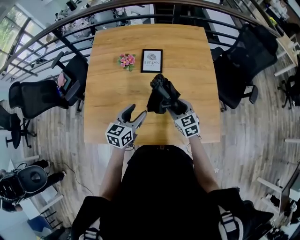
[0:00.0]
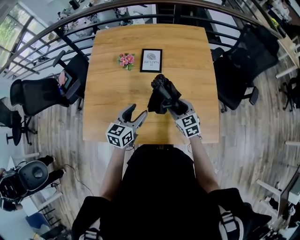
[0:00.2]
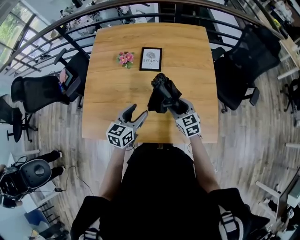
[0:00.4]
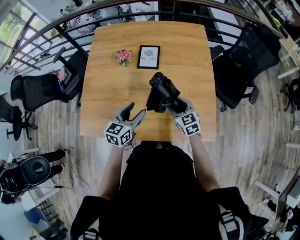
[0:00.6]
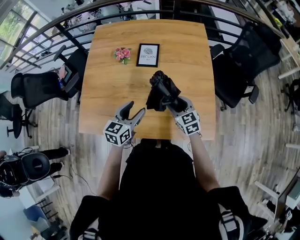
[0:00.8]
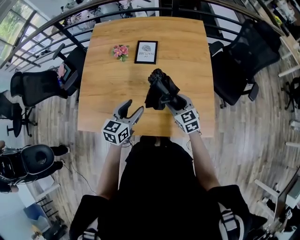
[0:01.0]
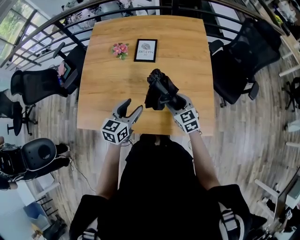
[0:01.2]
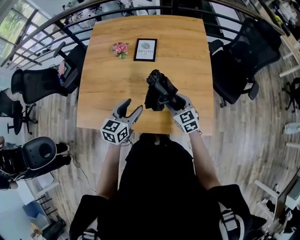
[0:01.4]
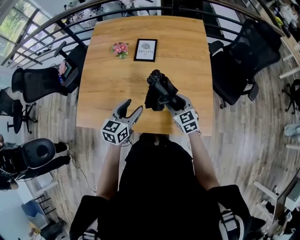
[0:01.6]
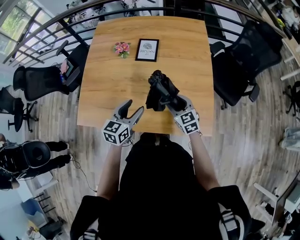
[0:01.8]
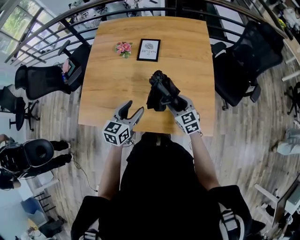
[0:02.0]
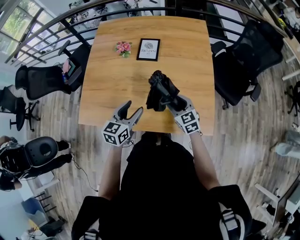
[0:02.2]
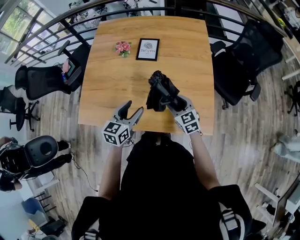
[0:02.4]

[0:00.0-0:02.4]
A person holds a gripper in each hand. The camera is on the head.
0:00.0 to 0:01.2: The right gripper changes place by roughly 5 cm, while the left gripper changes place by some 5 cm.
0:01.2 to 0:02.4: There are only small adjustments of the grippers.

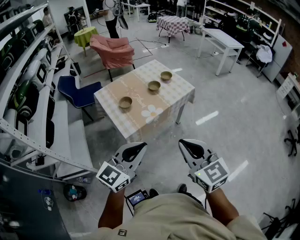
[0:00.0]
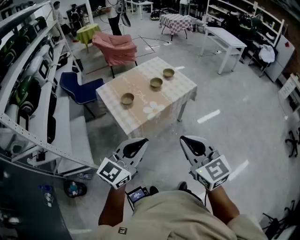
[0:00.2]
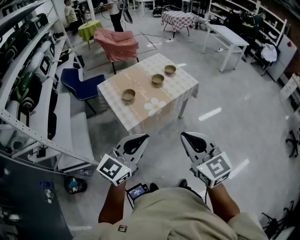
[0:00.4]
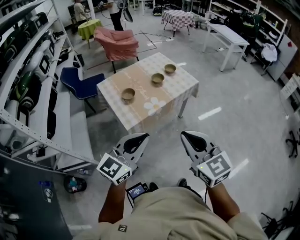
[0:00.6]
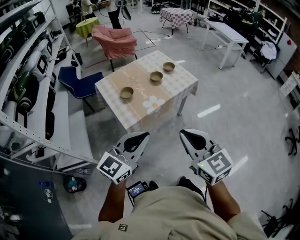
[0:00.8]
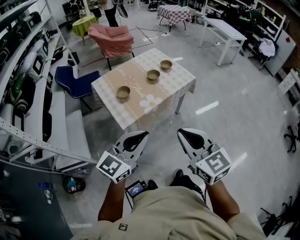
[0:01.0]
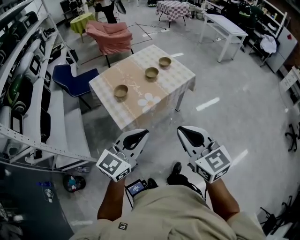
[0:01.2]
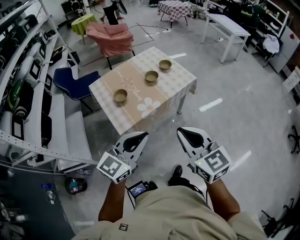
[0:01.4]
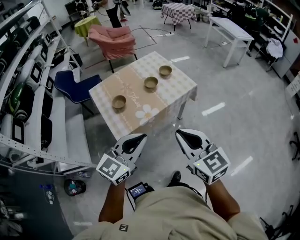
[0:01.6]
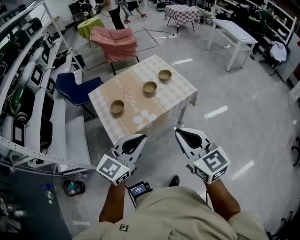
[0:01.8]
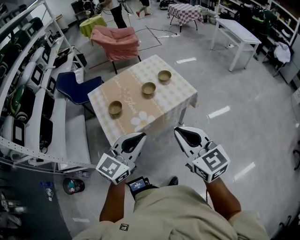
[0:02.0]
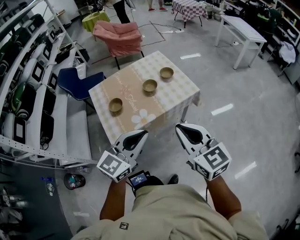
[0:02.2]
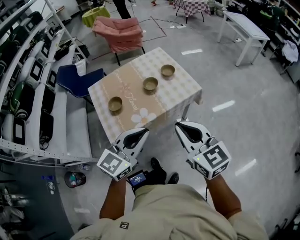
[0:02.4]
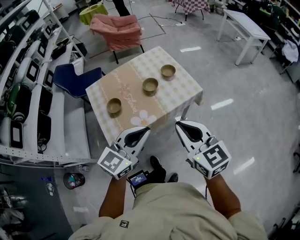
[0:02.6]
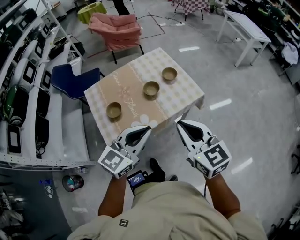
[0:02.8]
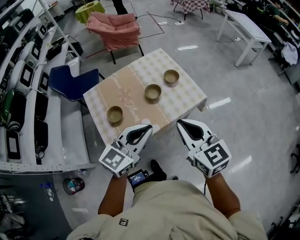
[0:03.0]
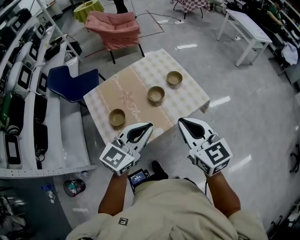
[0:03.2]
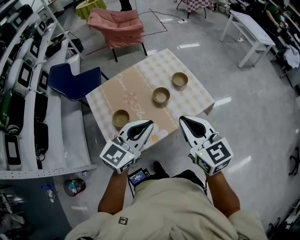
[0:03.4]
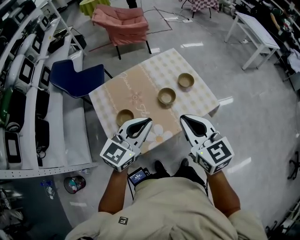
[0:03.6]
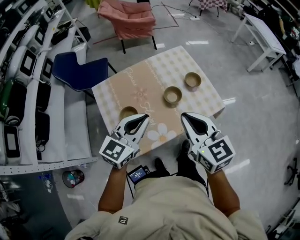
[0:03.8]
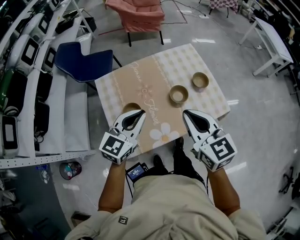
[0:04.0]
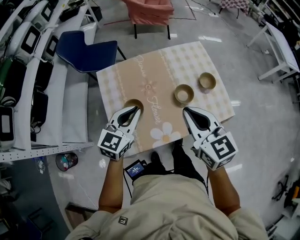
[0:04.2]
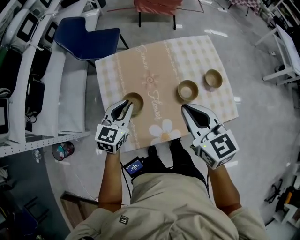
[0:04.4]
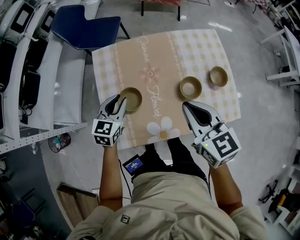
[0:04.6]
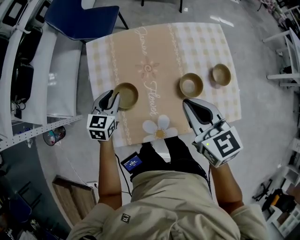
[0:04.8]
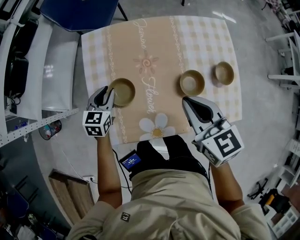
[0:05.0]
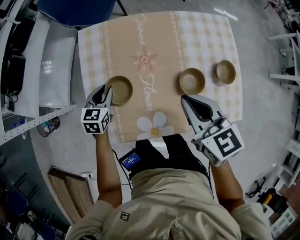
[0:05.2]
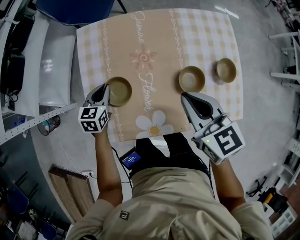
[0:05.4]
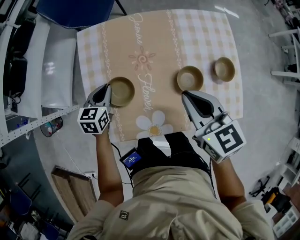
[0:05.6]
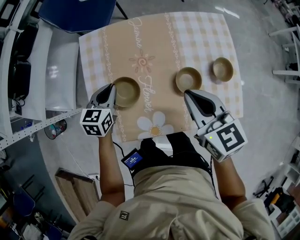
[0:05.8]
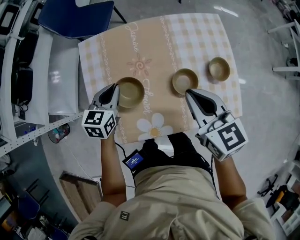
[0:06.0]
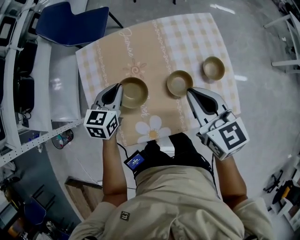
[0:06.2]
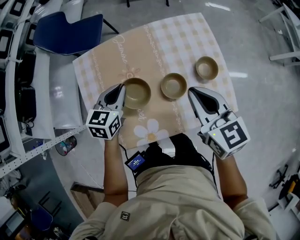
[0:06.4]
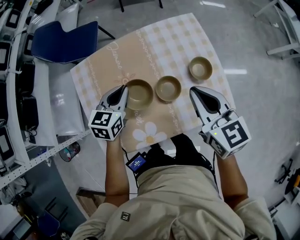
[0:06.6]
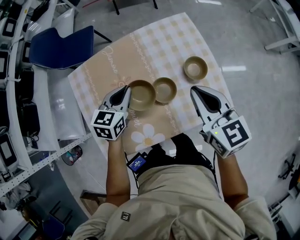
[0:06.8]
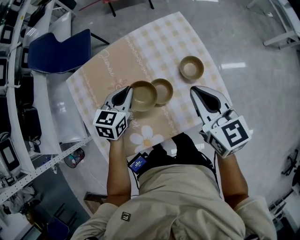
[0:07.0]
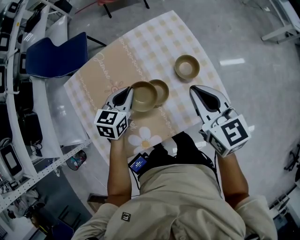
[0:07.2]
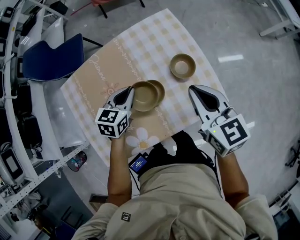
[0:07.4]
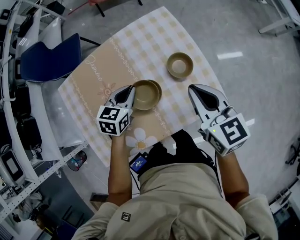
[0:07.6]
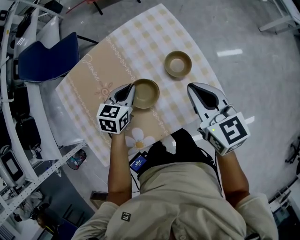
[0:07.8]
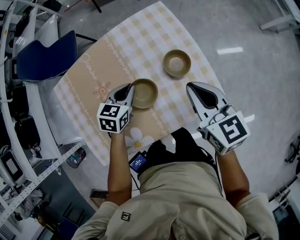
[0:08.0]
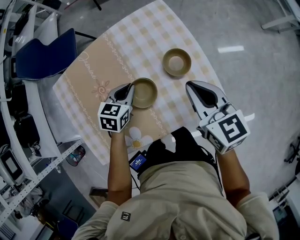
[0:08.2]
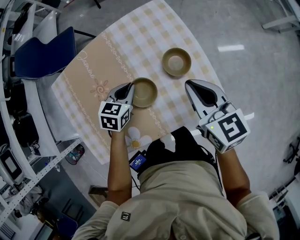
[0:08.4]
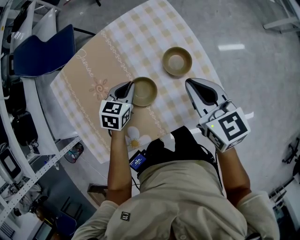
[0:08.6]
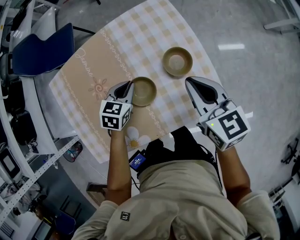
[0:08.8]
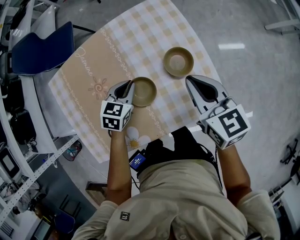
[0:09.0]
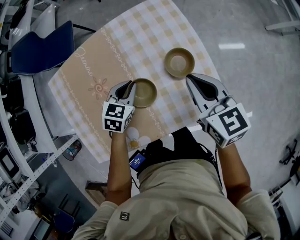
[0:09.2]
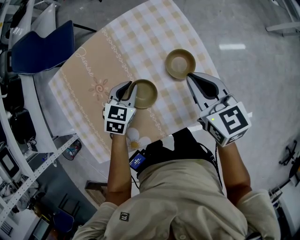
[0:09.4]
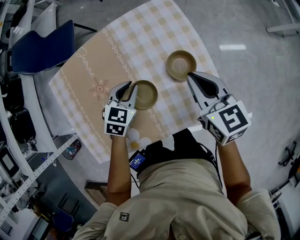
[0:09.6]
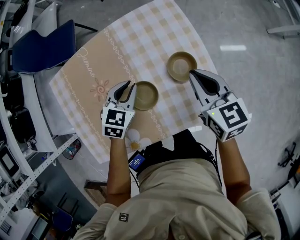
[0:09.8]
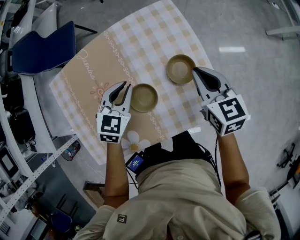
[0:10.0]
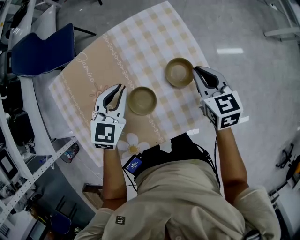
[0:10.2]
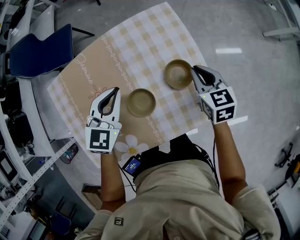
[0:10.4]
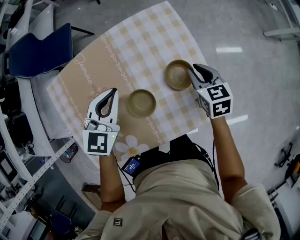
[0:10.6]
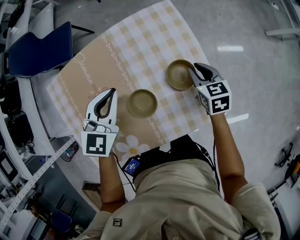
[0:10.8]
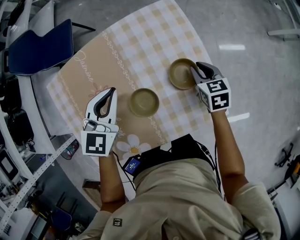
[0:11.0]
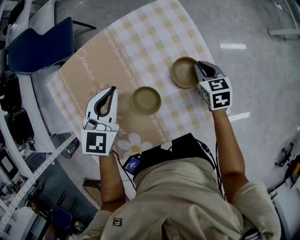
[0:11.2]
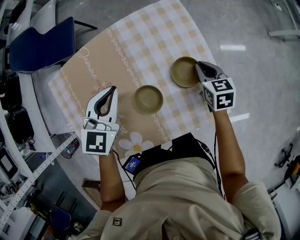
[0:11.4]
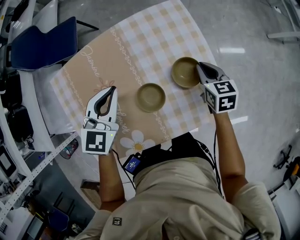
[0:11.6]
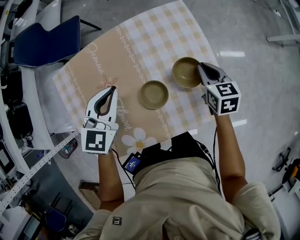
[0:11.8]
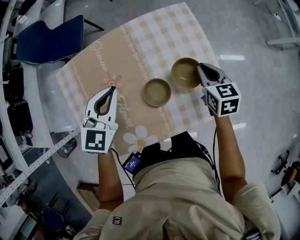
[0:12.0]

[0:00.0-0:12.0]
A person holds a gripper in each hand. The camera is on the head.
0:00.0 to 0:01.6: The grippers both shift forward and to the right by roughly 15 cm.
0:01.6 to 0:03.0: Both grippers move forward, about 25 cm.
0:03.0 to 0:04.4: The right gripper ends up approximately 25 cm from where it was. Meanwhile the left gripper ends up about 35 cm from where it was, and changes its angle by roughly 40 degrees.
0:04.4 to 0:06.0: The right gripper shifts some 15 cm downward, to the right and forward. Meanwhile the left gripper shifts approximately 10 cm downward and forward.
0:06.0 to 0:07.6: Both grippers travel together to the right, approximately 20 cm. The left gripper turns by approximately 20 degrees.
0:07.6 to 0:09.0: The grippers both shift downward by about 5 cm.
0:09.0 to 0:10.4: The right gripper goes about 10 cm downward and forward; the left gripper travels upward by some 10 cm, and turns by approximately 20 degrees.
0:10.4 to 0:12.0: The right gripper goes downward and returns, approximately 10 cm each way, while the left gripper shifts some 10 cm to the left.

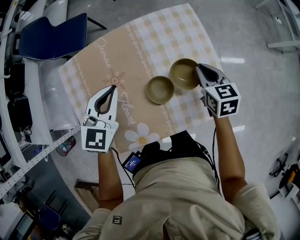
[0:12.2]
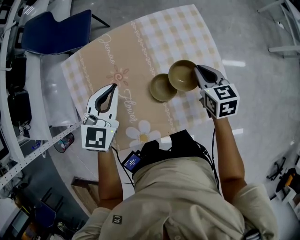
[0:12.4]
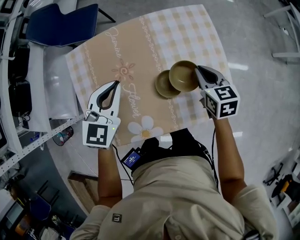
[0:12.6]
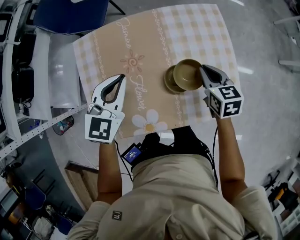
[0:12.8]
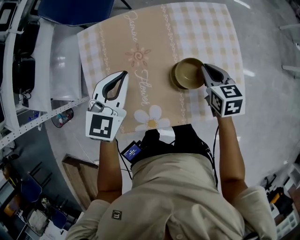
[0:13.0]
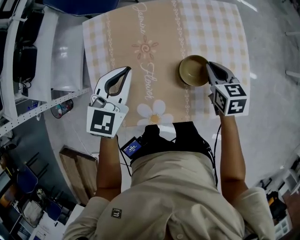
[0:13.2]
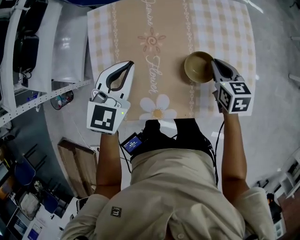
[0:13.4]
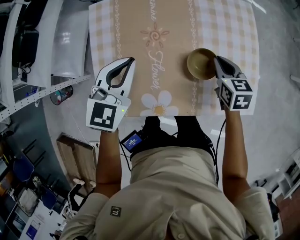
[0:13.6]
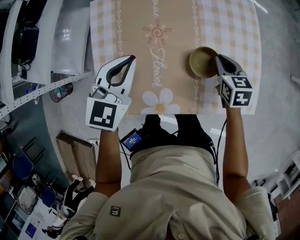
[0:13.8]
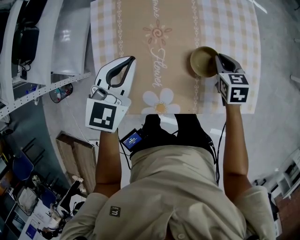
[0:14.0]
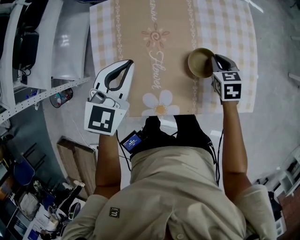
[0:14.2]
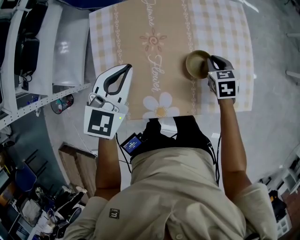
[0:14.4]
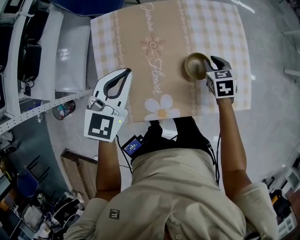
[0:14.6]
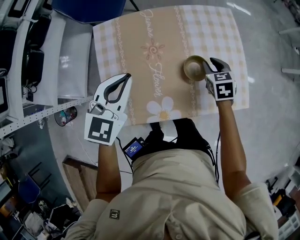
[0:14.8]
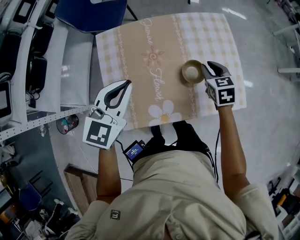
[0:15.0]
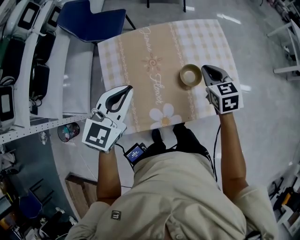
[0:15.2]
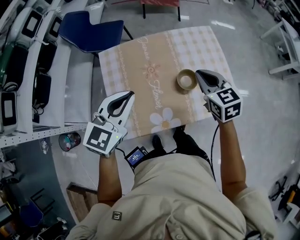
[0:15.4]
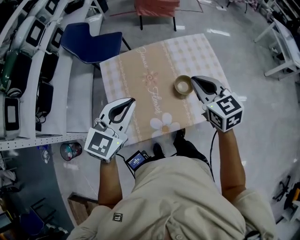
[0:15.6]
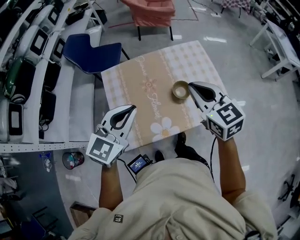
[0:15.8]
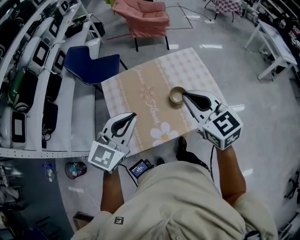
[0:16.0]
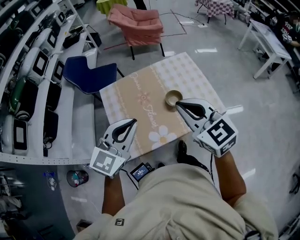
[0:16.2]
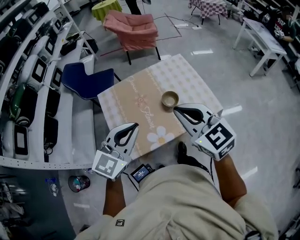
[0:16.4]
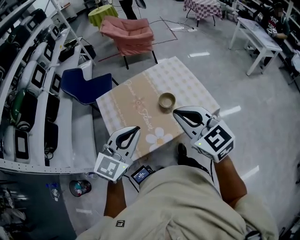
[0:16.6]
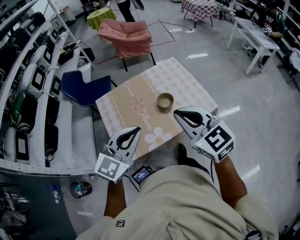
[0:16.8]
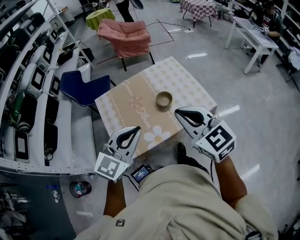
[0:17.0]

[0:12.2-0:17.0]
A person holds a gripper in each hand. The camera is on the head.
0:12.2 to 0:13.8: The left gripper shifts roughly 15 cm to the left and backward. Meanwhile the right gripper travels to the left and downward by about 15 cm.
0:13.8 to 0:15.4: The left gripper is displaced upward and backward by some 20 cm; the right gripper heads upward, covering roughly 20 cm.
0:15.4 to 0:17.0: The left gripper travels backward, to the right and upward by approximately 20 cm, and changes its angle by about 20 degrees. Meanwhile the right gripper shifts some 30 cm backward and upward.

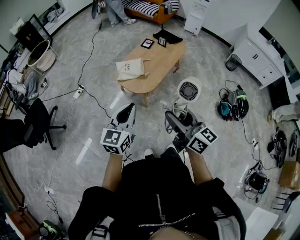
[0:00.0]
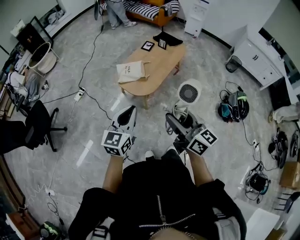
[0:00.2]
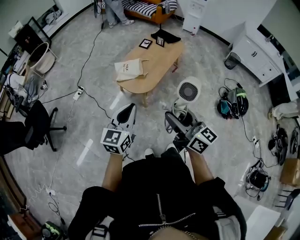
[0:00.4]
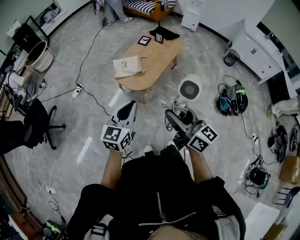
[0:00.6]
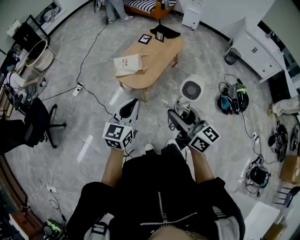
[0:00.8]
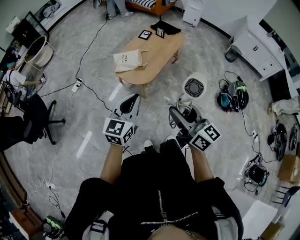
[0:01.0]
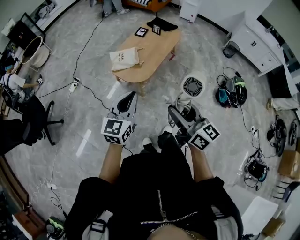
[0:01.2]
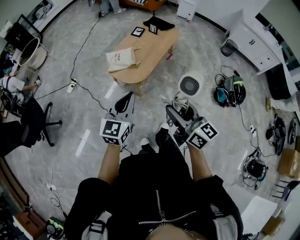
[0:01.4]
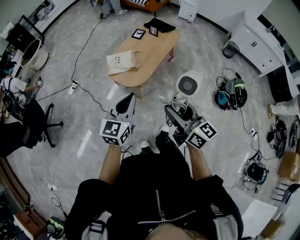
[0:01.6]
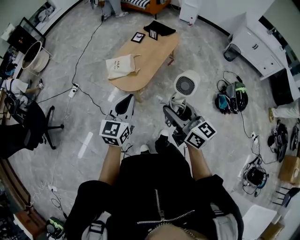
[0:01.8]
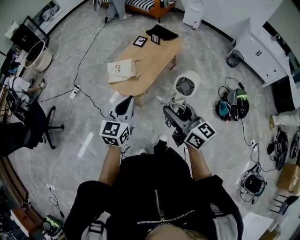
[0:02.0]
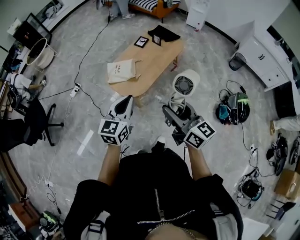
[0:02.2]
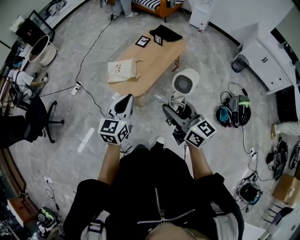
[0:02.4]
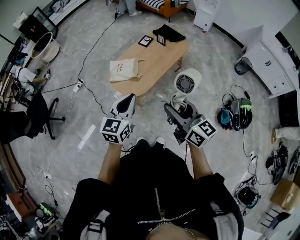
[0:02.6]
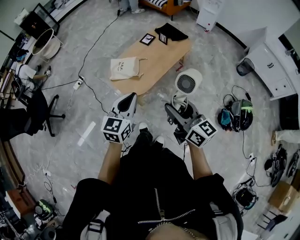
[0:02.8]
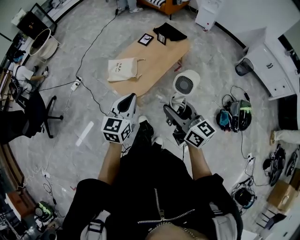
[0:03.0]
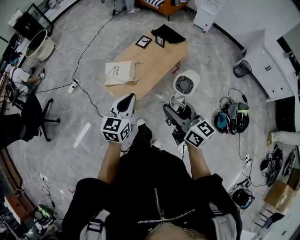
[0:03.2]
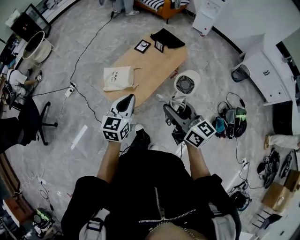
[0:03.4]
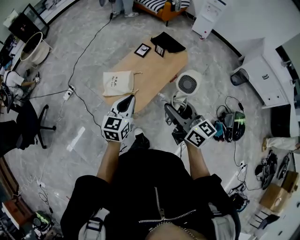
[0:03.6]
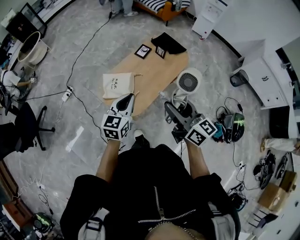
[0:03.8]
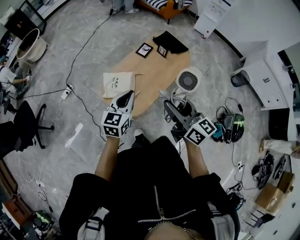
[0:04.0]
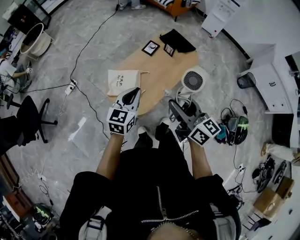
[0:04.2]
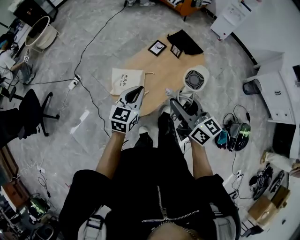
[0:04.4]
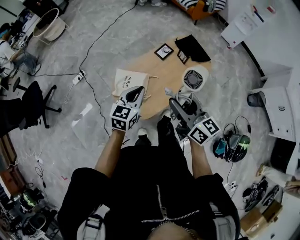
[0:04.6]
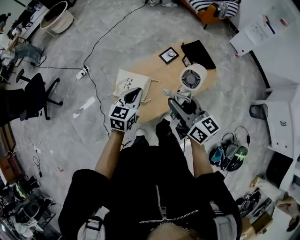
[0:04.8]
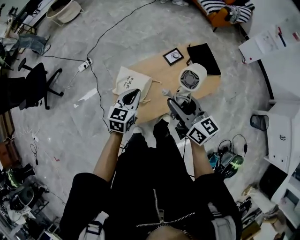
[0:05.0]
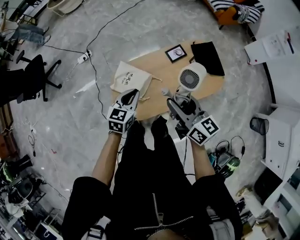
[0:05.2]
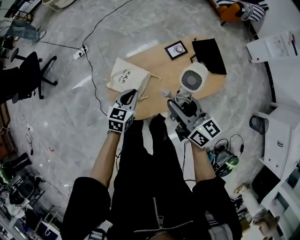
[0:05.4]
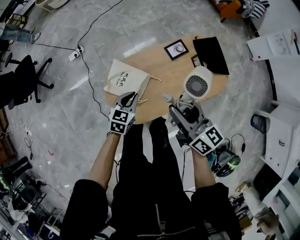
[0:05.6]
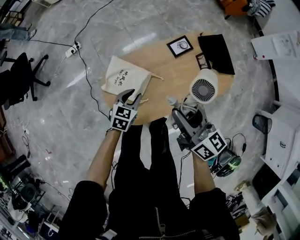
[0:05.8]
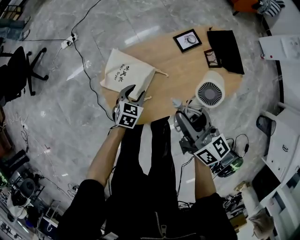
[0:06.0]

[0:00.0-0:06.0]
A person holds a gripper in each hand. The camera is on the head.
0:00.0 to 0:01.6: The two grippers go about 5 cm to the right.
0:01.6 to 0:03.0: Both grippers move forward and to the right, about 15 cm.
0:03.0 to 0:04.4: The two grippers go some 25 cm forward.
0:04.4 to 0:06.0: The right gripper moves downward and forward, about 30 cm, and turns by about 20 degrees; the left gripper travels downward by about 35 cm, tilts its fingers approximately 30 degrees downward, and opens up.
